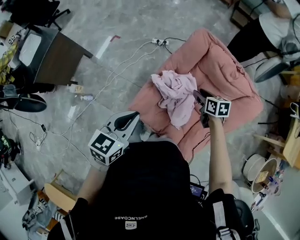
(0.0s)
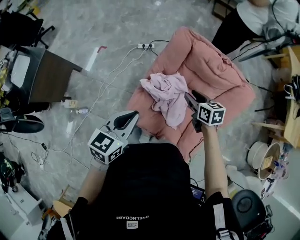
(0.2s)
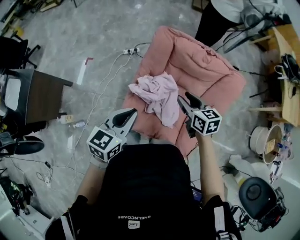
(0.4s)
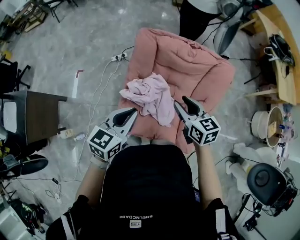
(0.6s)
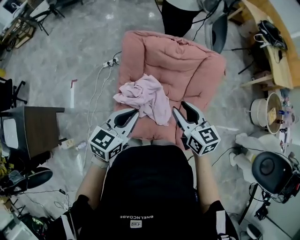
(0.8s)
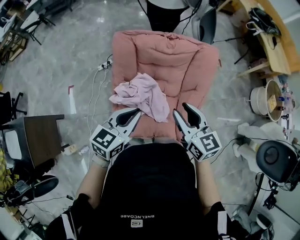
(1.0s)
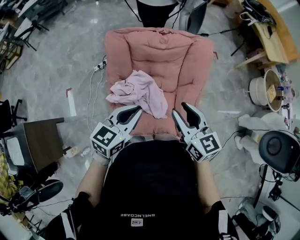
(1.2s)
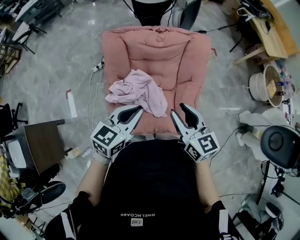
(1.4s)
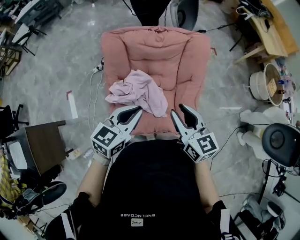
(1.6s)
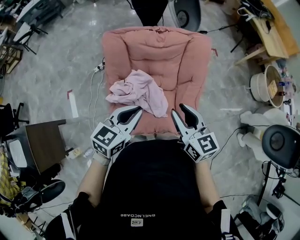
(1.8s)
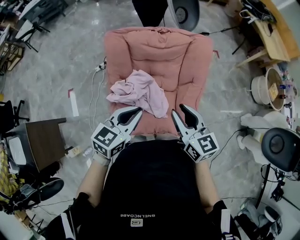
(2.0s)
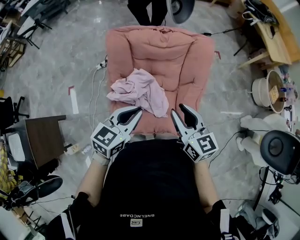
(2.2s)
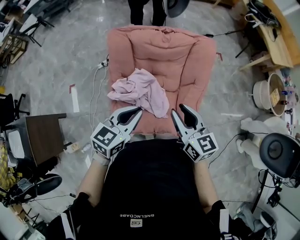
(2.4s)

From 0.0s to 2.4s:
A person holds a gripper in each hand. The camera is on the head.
From 0.0s to 1.2s: The left gripper shifts by roughly 20 cm, and swivels approximately 40 degrees. The right gripper travels upward by roughly 20 cm, and changes its angle by some 50 degrees.
From 1.2s to 2.4s: There are only small adjustments of the grippers.

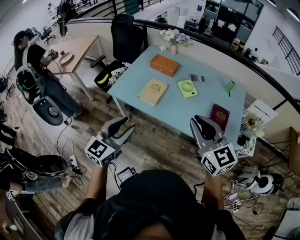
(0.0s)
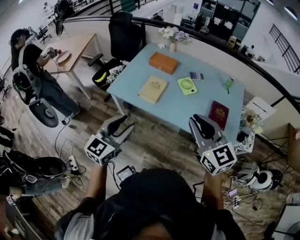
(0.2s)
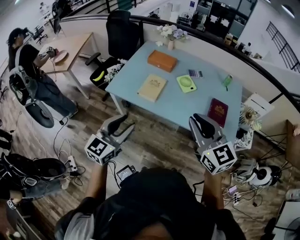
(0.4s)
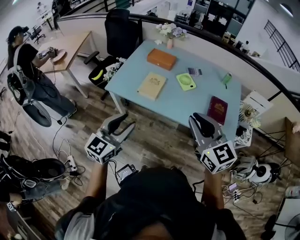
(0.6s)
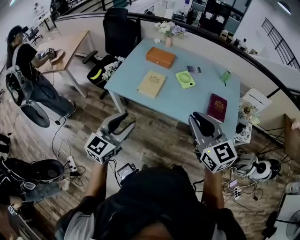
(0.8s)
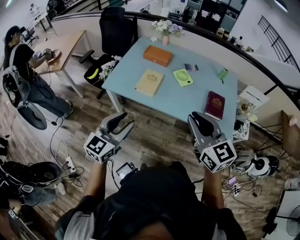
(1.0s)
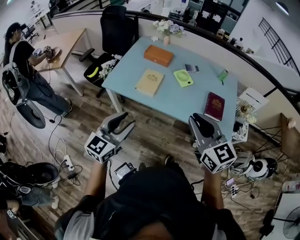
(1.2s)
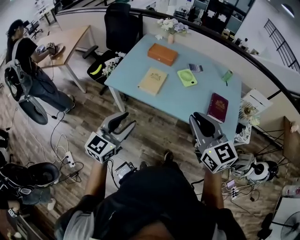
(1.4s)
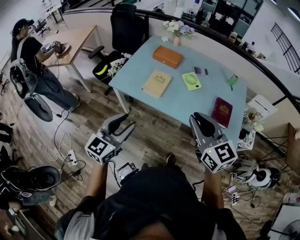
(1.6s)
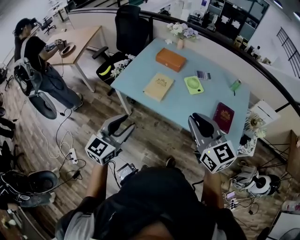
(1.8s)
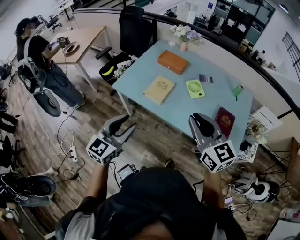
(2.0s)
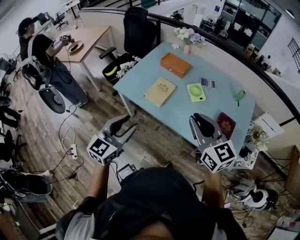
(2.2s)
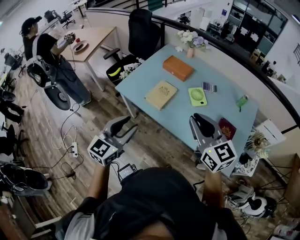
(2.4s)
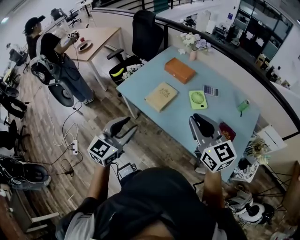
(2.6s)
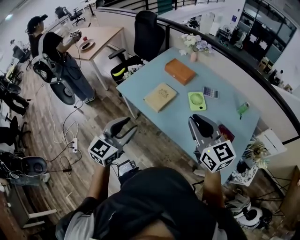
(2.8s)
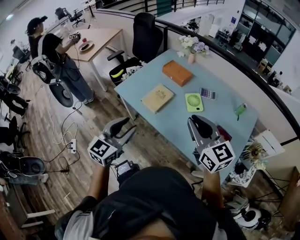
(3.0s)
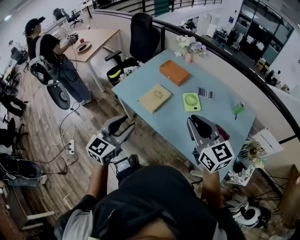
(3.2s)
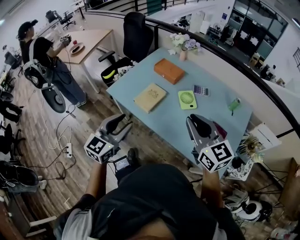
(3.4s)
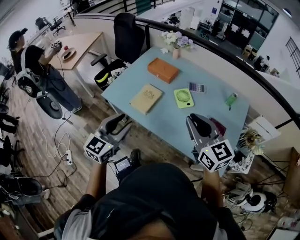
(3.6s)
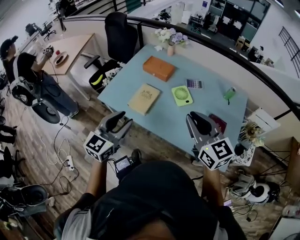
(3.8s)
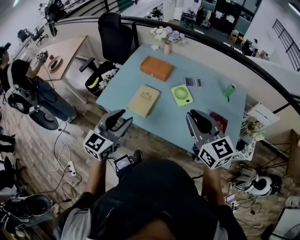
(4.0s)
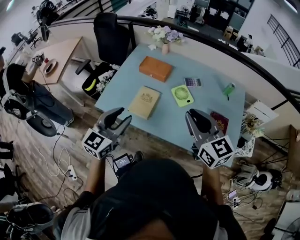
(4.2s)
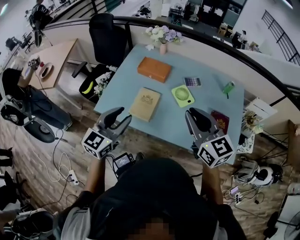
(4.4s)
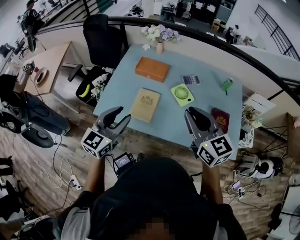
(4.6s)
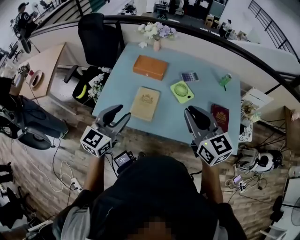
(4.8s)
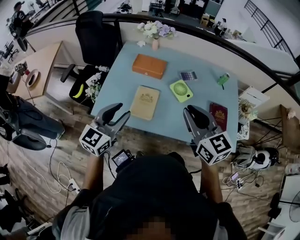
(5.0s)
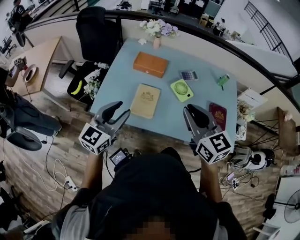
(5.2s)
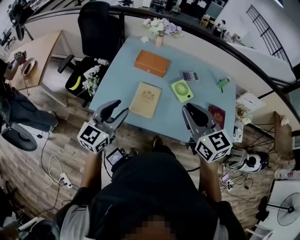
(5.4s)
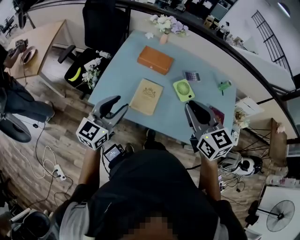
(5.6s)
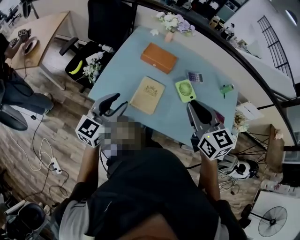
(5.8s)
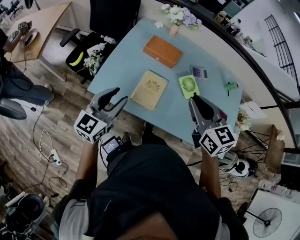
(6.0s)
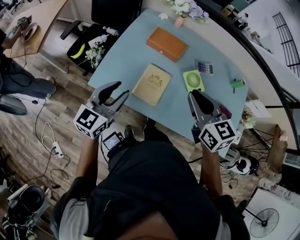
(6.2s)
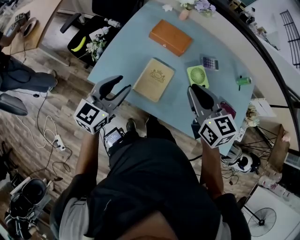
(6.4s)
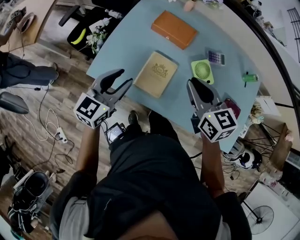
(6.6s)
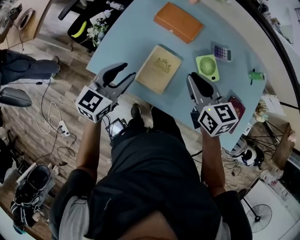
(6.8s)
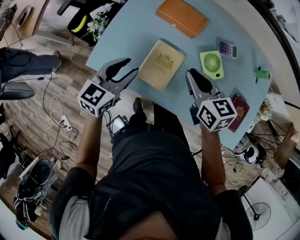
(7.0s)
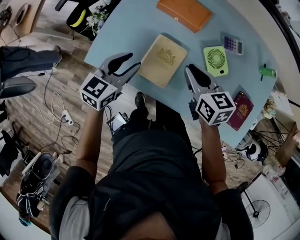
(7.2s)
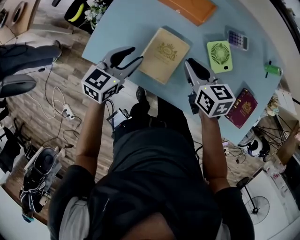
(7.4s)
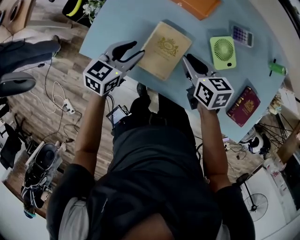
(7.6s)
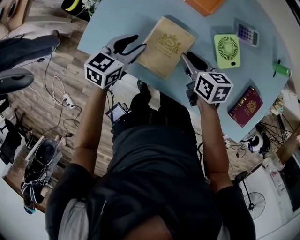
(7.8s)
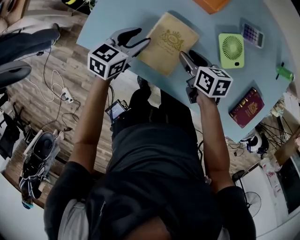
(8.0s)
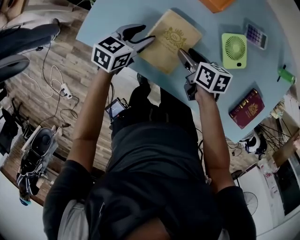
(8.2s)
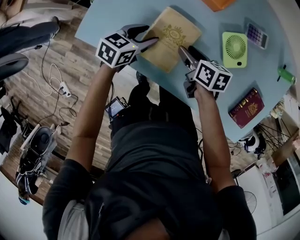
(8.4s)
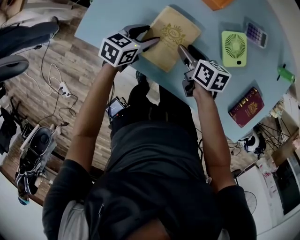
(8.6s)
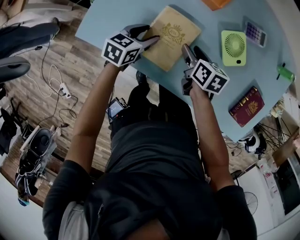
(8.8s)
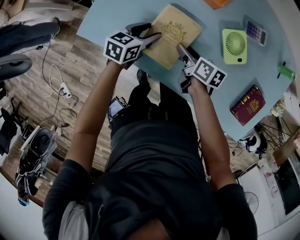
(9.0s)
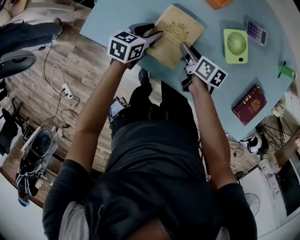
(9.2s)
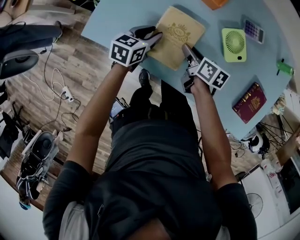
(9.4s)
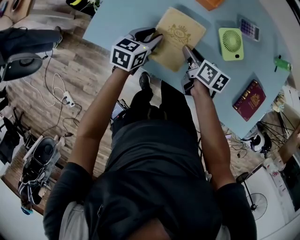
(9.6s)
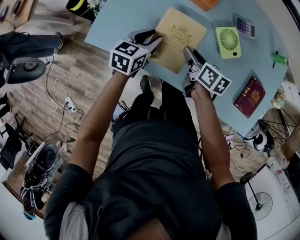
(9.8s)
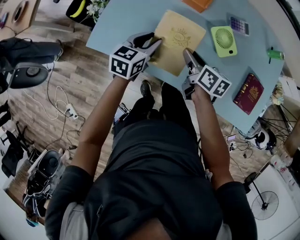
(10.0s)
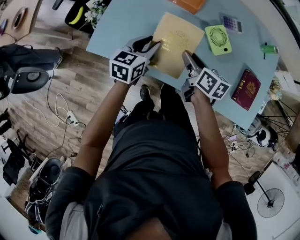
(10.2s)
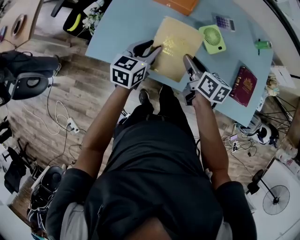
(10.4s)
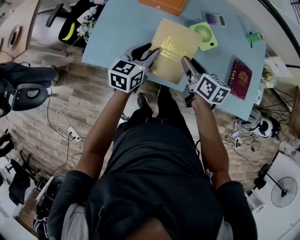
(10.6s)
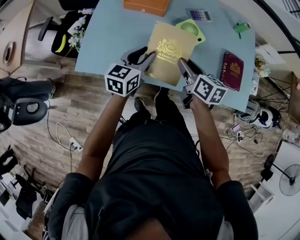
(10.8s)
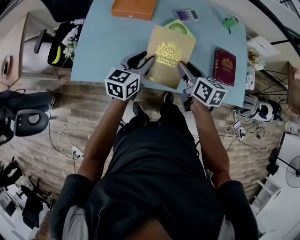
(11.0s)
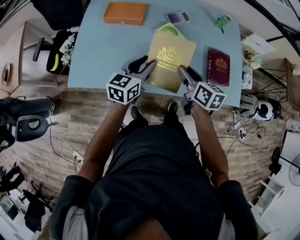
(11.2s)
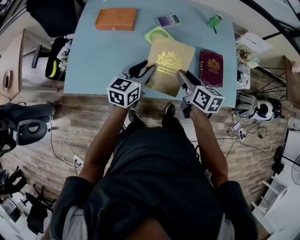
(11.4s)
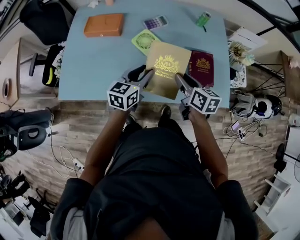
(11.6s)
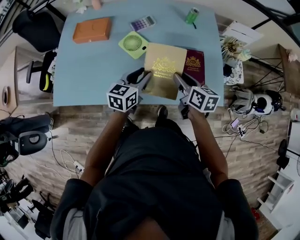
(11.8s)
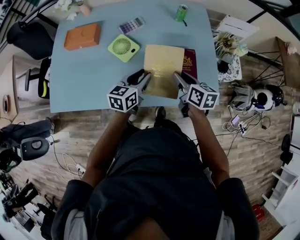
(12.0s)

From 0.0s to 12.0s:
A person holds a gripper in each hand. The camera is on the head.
From 0.0s to 1.6s: Both grippers move to the left, about 5 cm.
From 1.6s to 3.0s: The right gripper goes some 15 cm to the right and forward. The left gripper shifts roughly 10 cm to the right.
From 3.0s to 4.4s: The right gripper travels forward and to the left by approximately 10 cm, and rotates roughly 20 degrees. The left gripper moves forward, about 15 cm, and swivels roughly 20 degrees.
From 4.4s to 6.0s: The right gripper moves to the left and forward, some 15 cm; the left gripper goes roughly 15 cm to the left, downward and forward.
From 6.0s to 7.6s: Both grippers travel together downward and forward, about 30 cm. The right gripper swivels some 30 degrees; the left gripper rotates some 30 degrees.
From 7.6s to 9.0s: The grippers both shift downward by approximately 10 cm. The right gripper rotates some 30 degrees, and opens up.
From 9.0s to 10.4s: The right gripper shifts some 15 cm upward and backward, and changes its angle by some 20 degrees. The left gripper is displaced upward by approximately 15 cm.
From 10.4s to 12.0s: The two grippers travel together, to the right, about 40 cm.

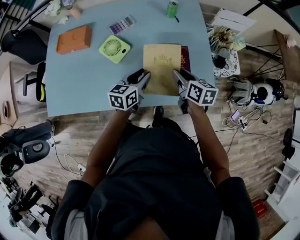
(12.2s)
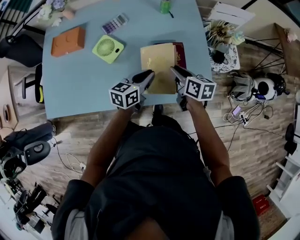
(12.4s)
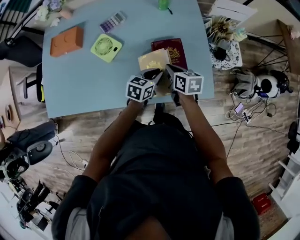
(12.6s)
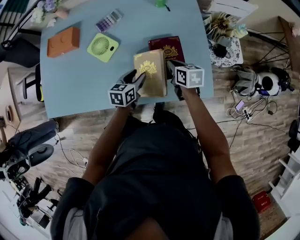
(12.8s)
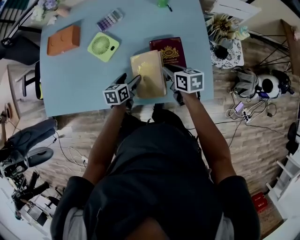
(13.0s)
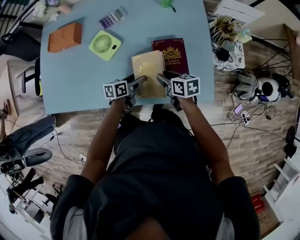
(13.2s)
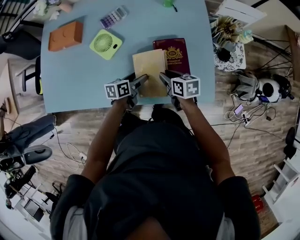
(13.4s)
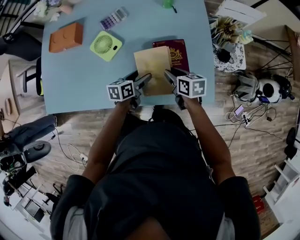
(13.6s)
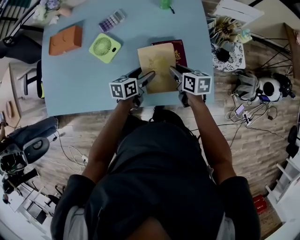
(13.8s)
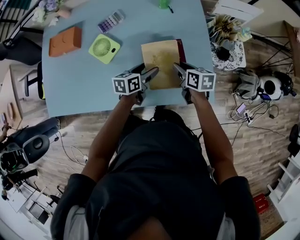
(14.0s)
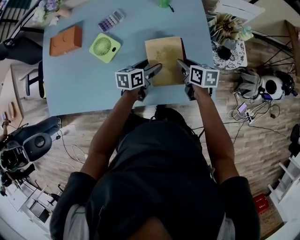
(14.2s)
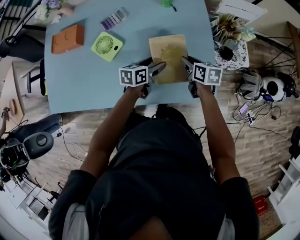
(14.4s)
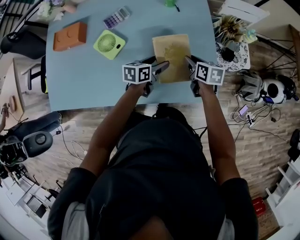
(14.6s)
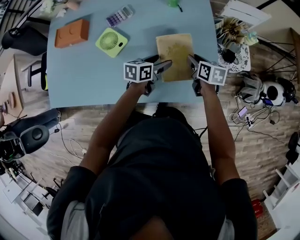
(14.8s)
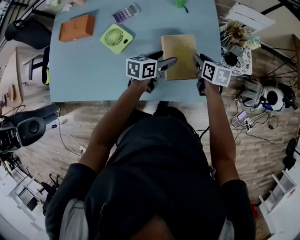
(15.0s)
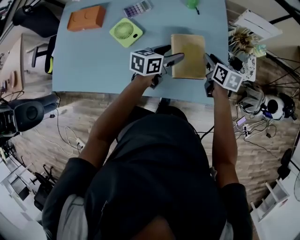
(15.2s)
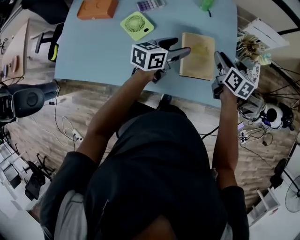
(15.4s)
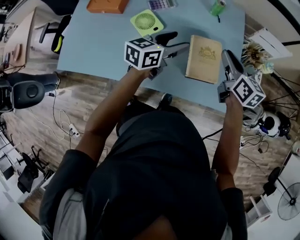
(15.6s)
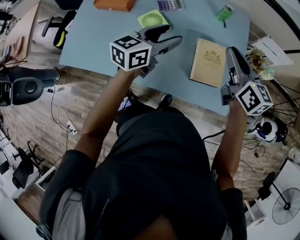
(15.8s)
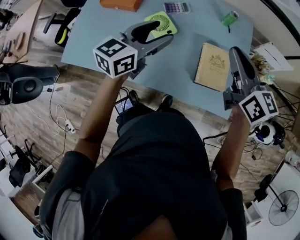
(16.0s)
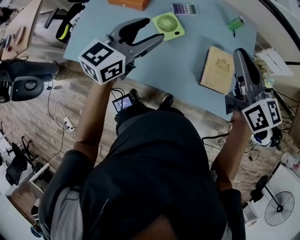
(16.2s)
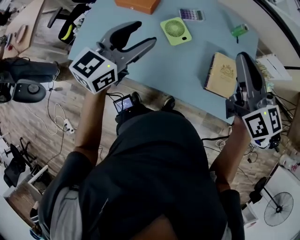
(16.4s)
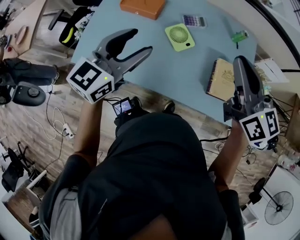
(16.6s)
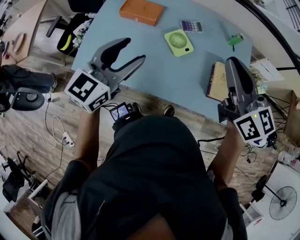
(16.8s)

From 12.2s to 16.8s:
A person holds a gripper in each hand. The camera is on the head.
From 12.2s to 13.8s: The right gripper travels downward by approximately 10 cm, and closes and opens again, while the left gripper goes about 10 cm downward and to the right, and opens its fingers.
From 13.8s to 15.2s: The right gripper goes roughly 10 cm to the right and forward; the left gripper moves upward, about 10 cm.
From 15.2s to 16.8s: The right gripper moves upward and to the left, roughly 50 cm, and tilts its fingers about 30 degrees upward, while the left gripper is displaced to the left and upward by some 50 cm, and rotates about 40 degrees.

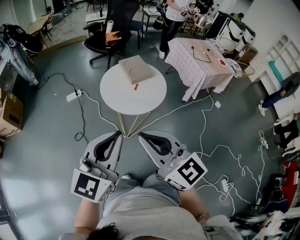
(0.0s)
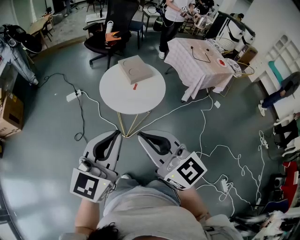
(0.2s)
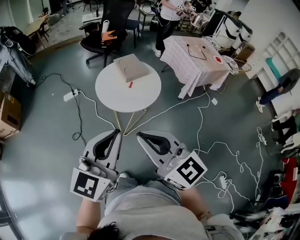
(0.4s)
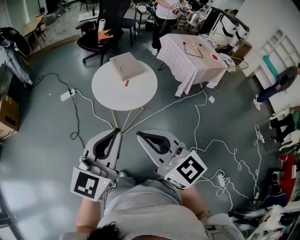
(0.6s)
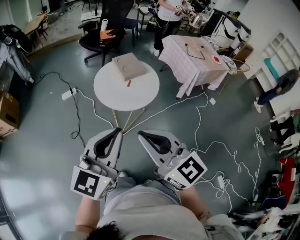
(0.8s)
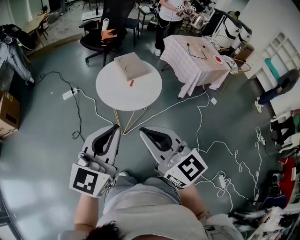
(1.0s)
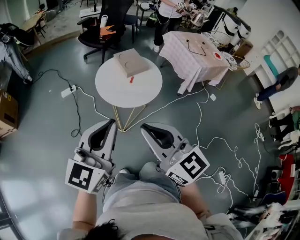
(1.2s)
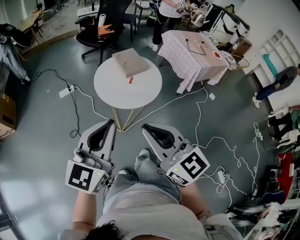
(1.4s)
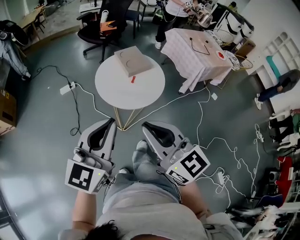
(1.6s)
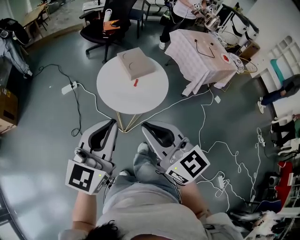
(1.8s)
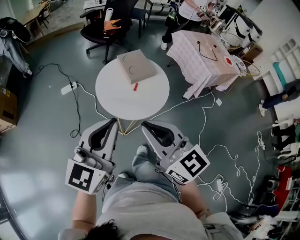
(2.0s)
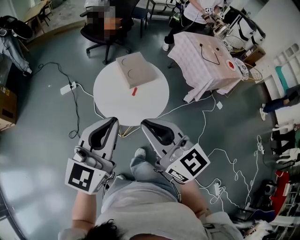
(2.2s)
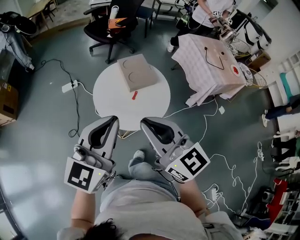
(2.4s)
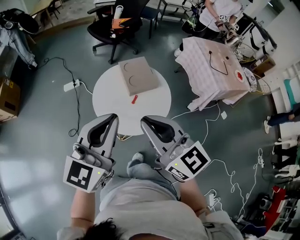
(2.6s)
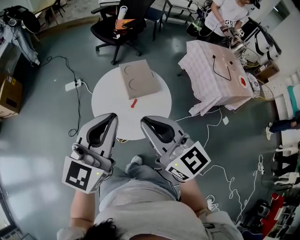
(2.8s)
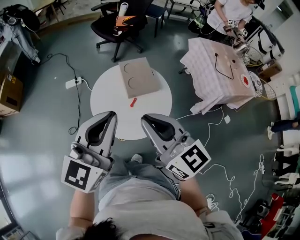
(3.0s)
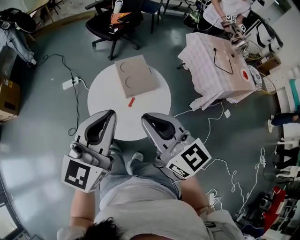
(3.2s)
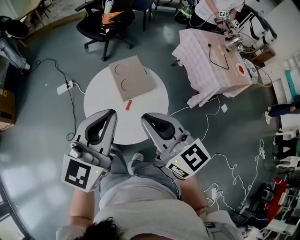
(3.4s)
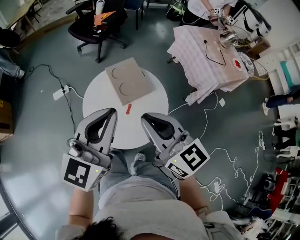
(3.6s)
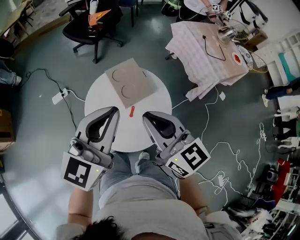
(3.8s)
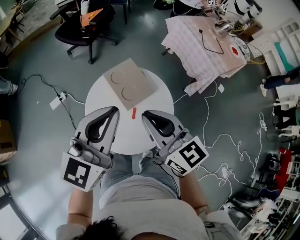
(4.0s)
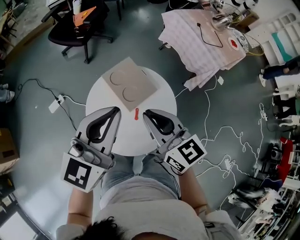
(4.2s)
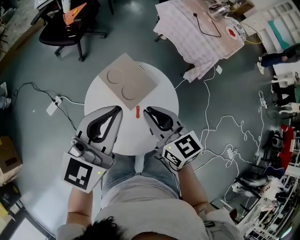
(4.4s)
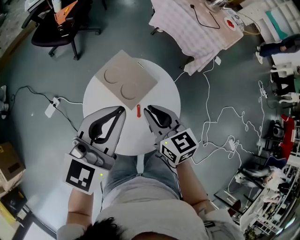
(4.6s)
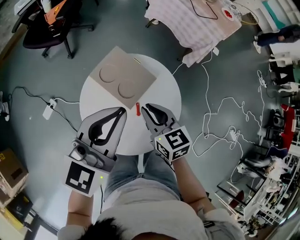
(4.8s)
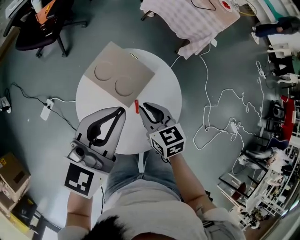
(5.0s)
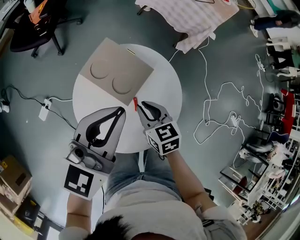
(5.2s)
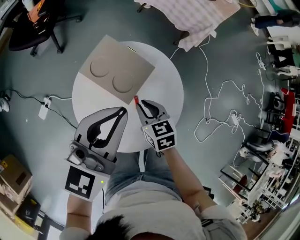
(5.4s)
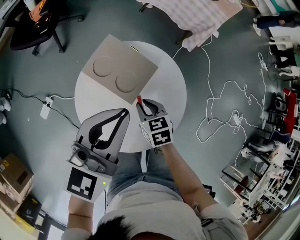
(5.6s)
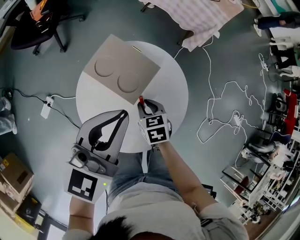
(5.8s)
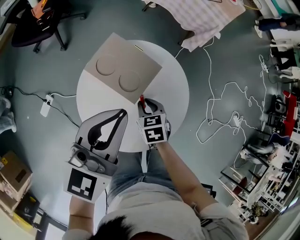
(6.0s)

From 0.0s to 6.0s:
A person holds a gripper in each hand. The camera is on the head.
From 0.0s to 1.6s: The left gripper changes place by about 5 cm.
From 1.6s to 3.0s: Both grippers move forward and to the right, approximately 25 cm.
From 3.0s to 4.4s: The right gripper moves about 20 cm, and swivels some 40 degrees, while the left gripper shifts by roughly 20 cm, and rotates some 30 degrees.
From 4.4s to 6.0s: The right gripper travels downward by roughly 25 cm, and tips its fingers downward by roughly 40 degrees; the left gripper travels downward by roughly 10 cm.
